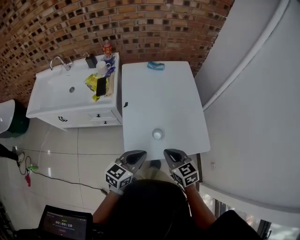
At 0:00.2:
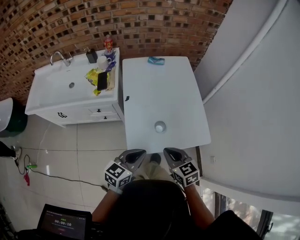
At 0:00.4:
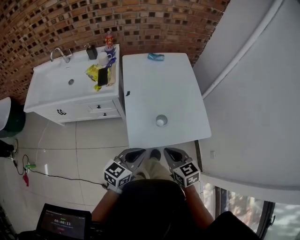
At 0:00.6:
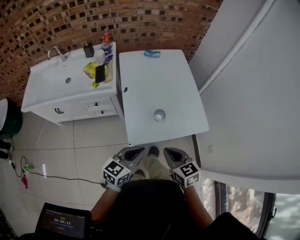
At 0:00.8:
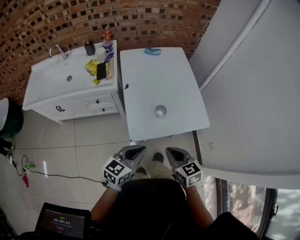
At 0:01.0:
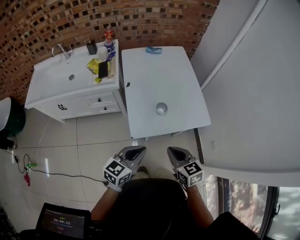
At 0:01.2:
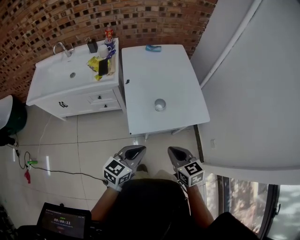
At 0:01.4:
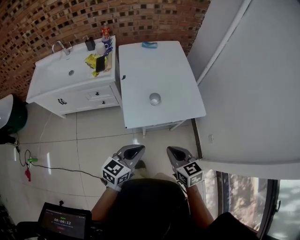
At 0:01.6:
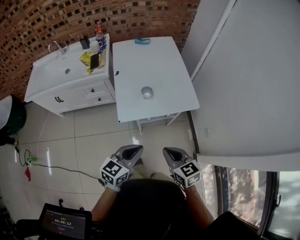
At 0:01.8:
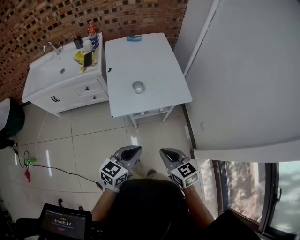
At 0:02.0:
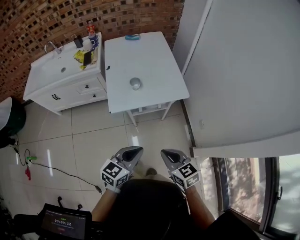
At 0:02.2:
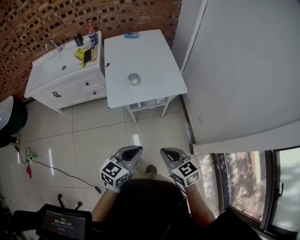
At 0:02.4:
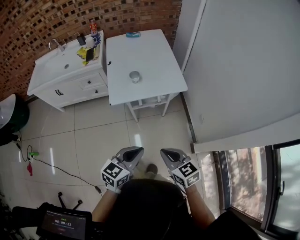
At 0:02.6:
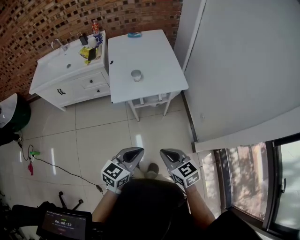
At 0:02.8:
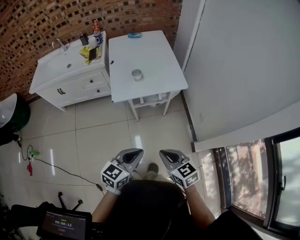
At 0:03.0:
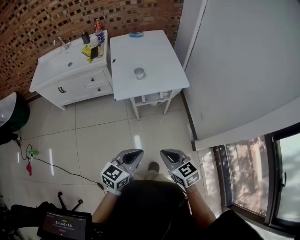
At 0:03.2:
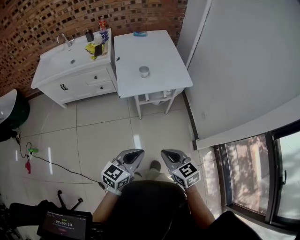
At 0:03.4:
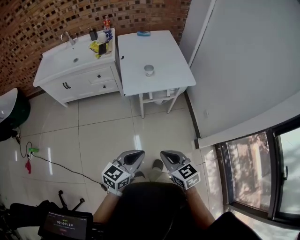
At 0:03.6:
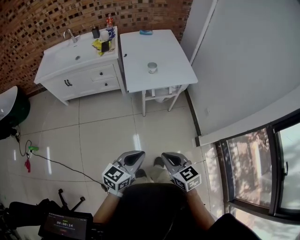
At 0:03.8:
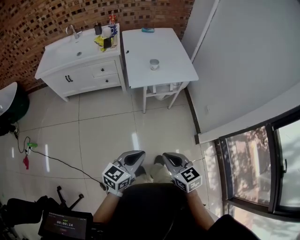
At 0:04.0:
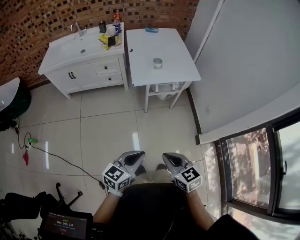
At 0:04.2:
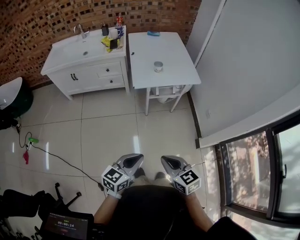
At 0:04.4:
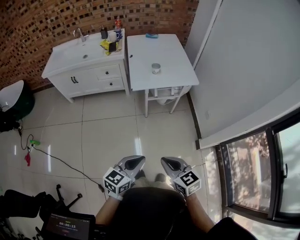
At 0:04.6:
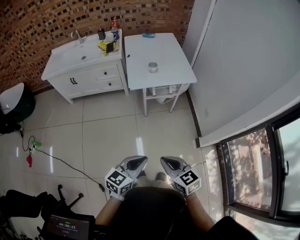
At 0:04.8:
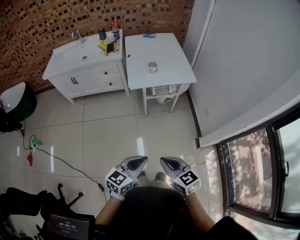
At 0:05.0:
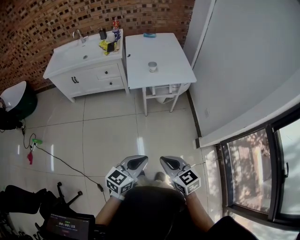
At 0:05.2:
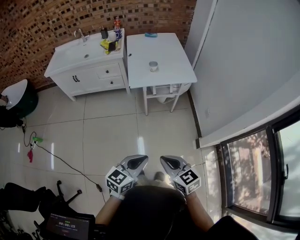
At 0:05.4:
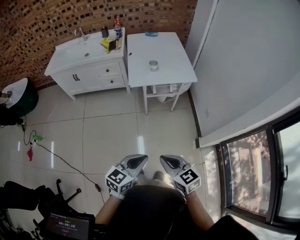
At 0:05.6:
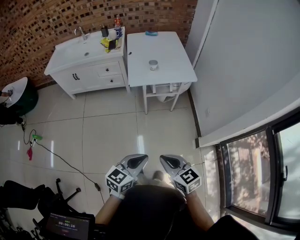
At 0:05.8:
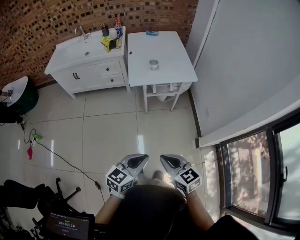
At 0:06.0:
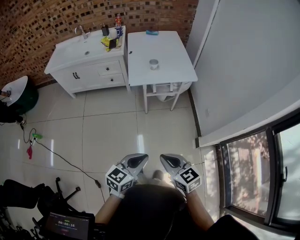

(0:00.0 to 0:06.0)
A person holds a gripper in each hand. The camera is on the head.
0:00.0 - 0:01.6: The two grippers go approximately 25 cm backward.
0:01.6 - 0:03.0: Both grippers travel together backward, about 20 cm.
0:03.0 - 0:04.4: Both grippers move backward and to the left, roughly 15 cm.
0:04.4 - 0:06.0: The left gripper is displaced to the right by approximately 5 cm.

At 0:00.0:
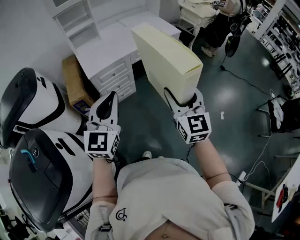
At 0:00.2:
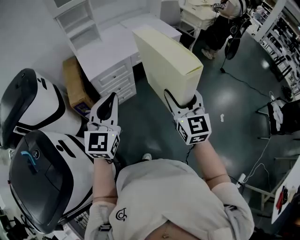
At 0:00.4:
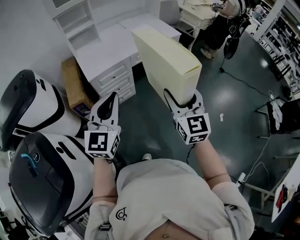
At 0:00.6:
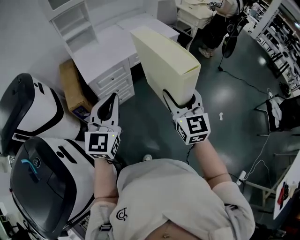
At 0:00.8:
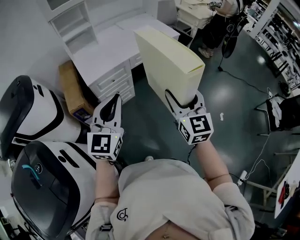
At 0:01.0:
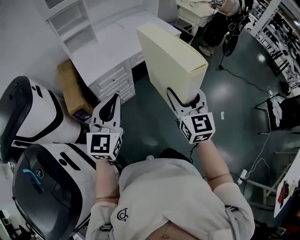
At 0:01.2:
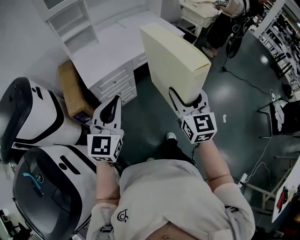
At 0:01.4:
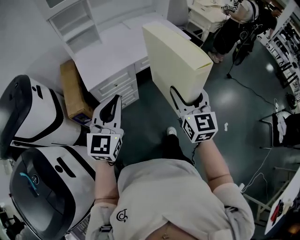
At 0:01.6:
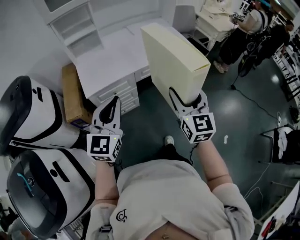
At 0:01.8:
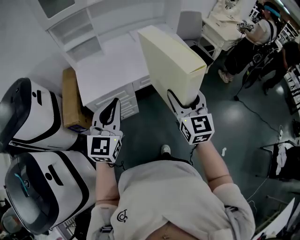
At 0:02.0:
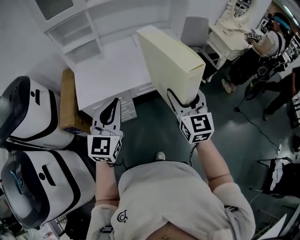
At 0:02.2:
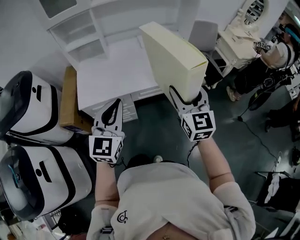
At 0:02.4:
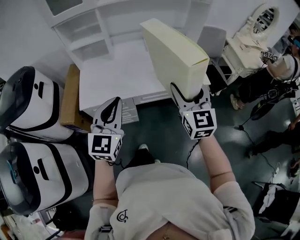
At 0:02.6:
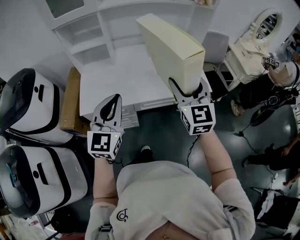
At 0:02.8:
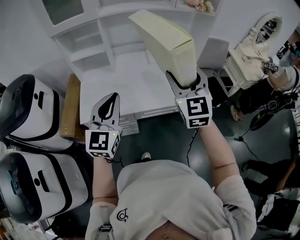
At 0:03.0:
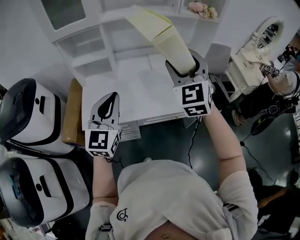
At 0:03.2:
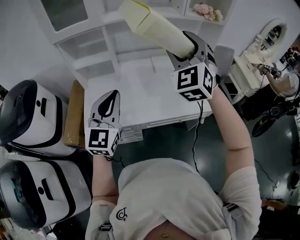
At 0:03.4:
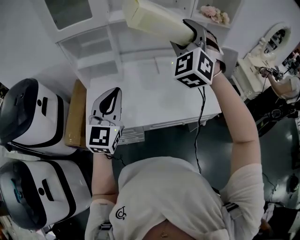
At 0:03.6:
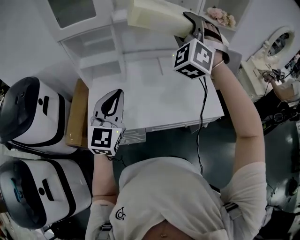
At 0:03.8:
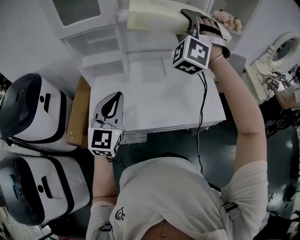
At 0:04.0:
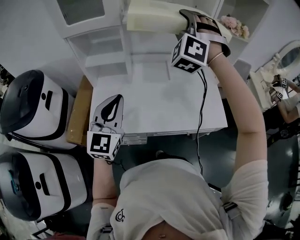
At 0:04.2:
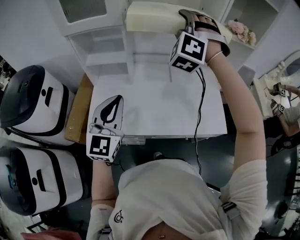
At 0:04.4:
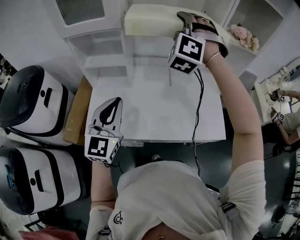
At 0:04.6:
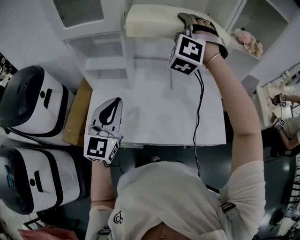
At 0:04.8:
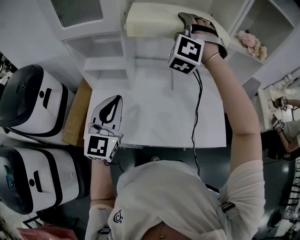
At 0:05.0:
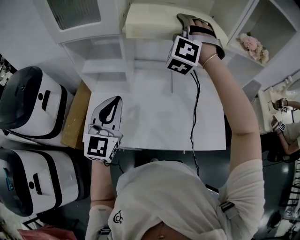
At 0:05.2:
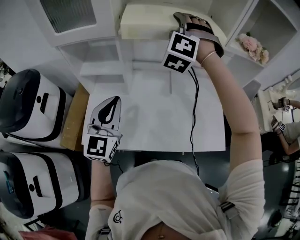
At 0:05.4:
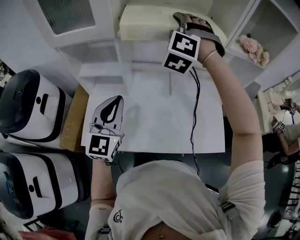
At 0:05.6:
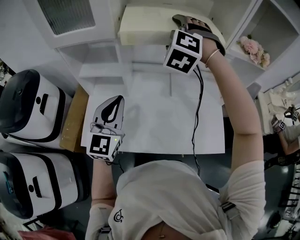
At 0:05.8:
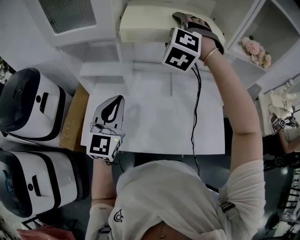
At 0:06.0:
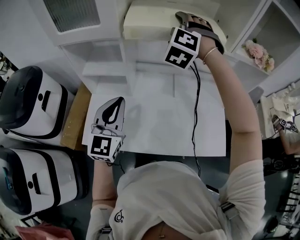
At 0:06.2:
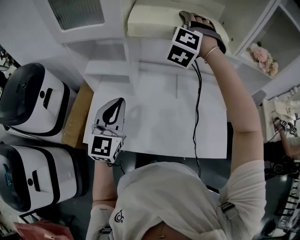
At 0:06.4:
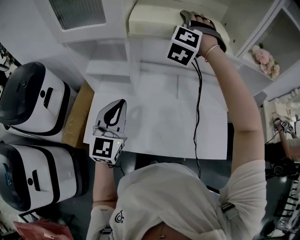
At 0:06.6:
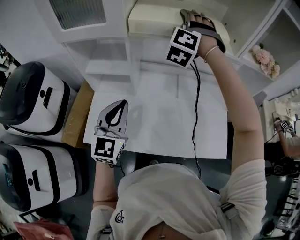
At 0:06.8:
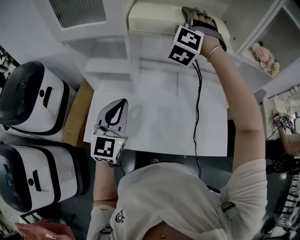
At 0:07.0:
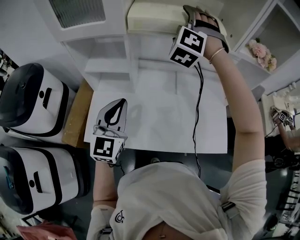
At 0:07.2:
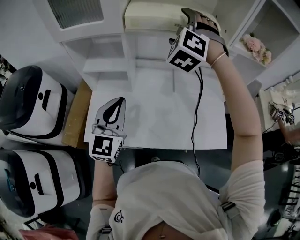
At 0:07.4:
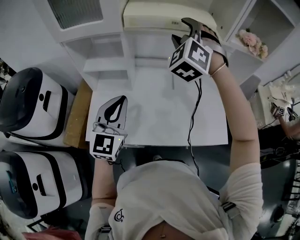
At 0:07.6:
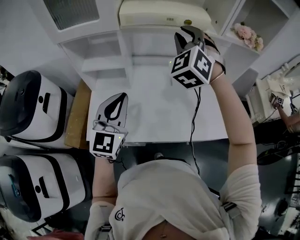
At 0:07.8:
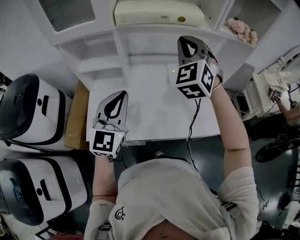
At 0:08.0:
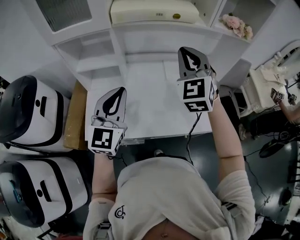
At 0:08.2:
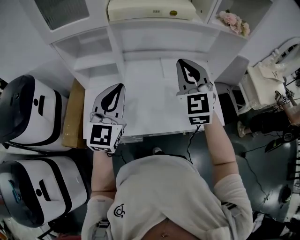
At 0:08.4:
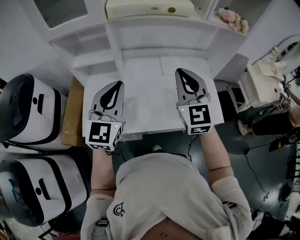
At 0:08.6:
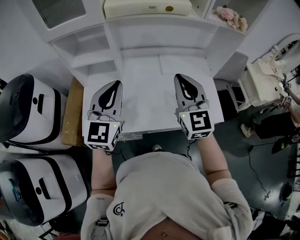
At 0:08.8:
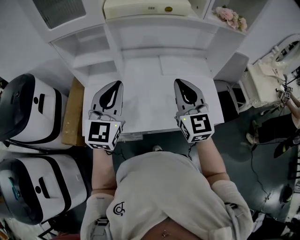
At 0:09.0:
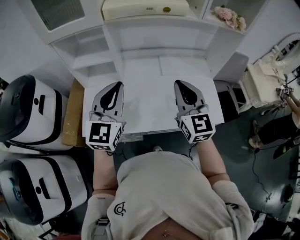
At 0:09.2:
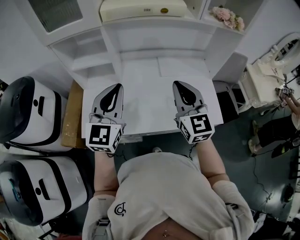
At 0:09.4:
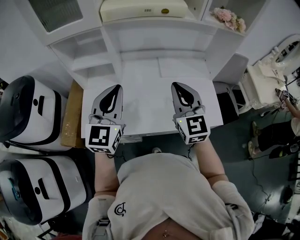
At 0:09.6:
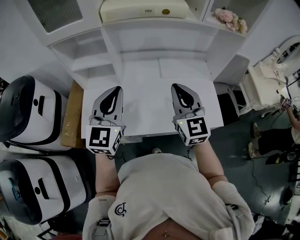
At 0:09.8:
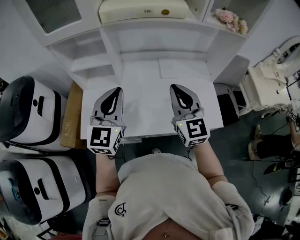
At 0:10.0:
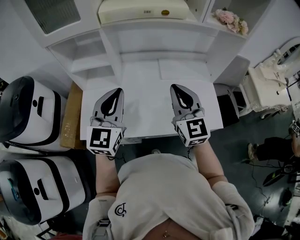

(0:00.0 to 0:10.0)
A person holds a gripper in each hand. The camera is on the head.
0:00.0 - 0:01.4: Both grippers travel together forward, roughly 15 cm.
0:01.4 - 0:02.8: The grippers both shift forward by some 35 cm. The right gripper swivels some 30 degrees, while the left gripper swivels some 20 degrees.
0:02.8 - 0:04.2: The left gripper travels forward and to the left by roughly 15 cm. Meanwhile the right gripper heads forward and to the left, covering roughly 30 cm, and rolls counterclockwise, seen from behind, by approximately 60 degrees.
0:04.2 - 0:05.8: The right gripper goes roughly 10 cm forward and downward, and turns by about 20 degrees. Meanwhile the left gripper shifts some 10 cm forward.
0:05.8 - 0:07.2: The grippers stay close to where they were, moving slightly.
0:07.2 - 0:08.6: The left gripper changes place by approximately 5 cm, while the right gripper shifts roughly 30 cm backward, to the right and downward, twists roughly 60 degrees clockwise, seen from behind, and closes.
0:08.6 - 0:10.0: There are only small adjustments of the grippers.

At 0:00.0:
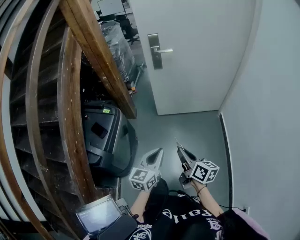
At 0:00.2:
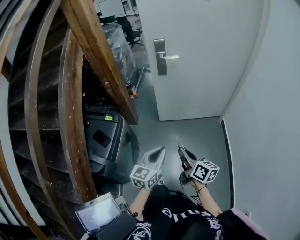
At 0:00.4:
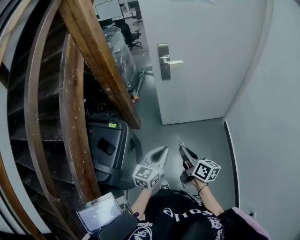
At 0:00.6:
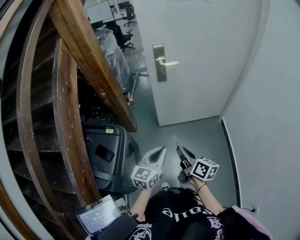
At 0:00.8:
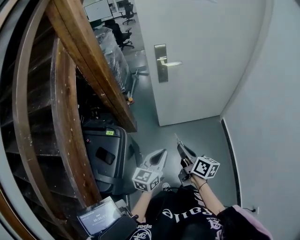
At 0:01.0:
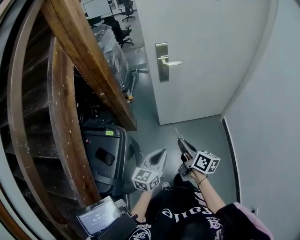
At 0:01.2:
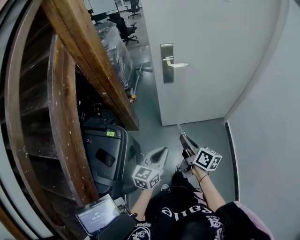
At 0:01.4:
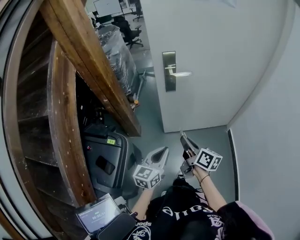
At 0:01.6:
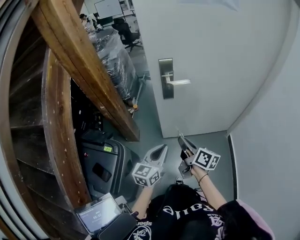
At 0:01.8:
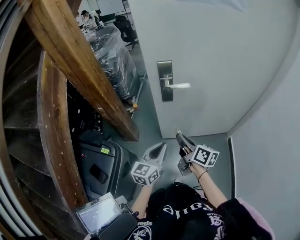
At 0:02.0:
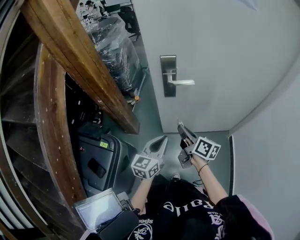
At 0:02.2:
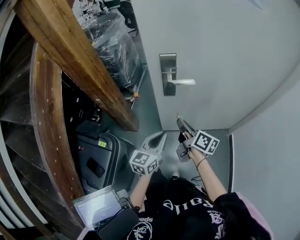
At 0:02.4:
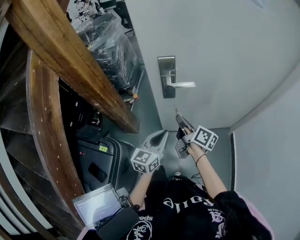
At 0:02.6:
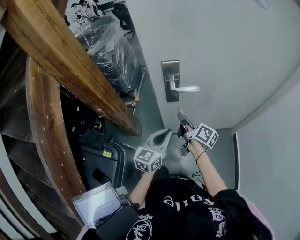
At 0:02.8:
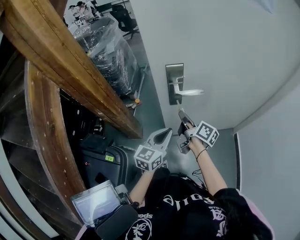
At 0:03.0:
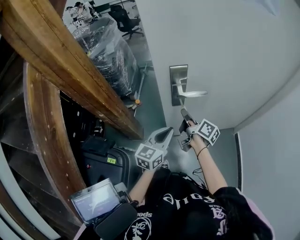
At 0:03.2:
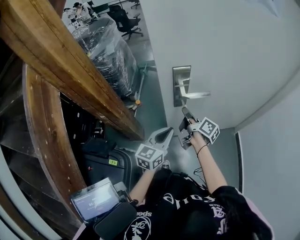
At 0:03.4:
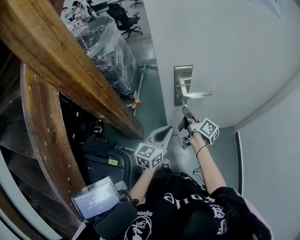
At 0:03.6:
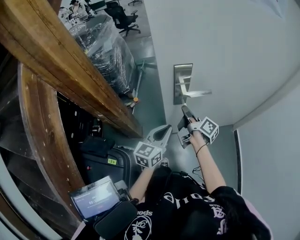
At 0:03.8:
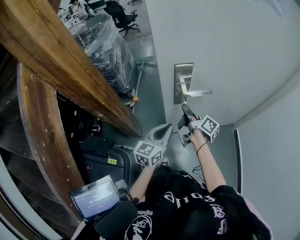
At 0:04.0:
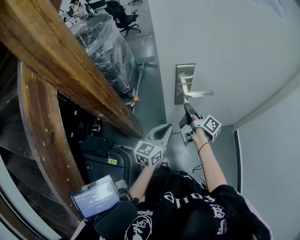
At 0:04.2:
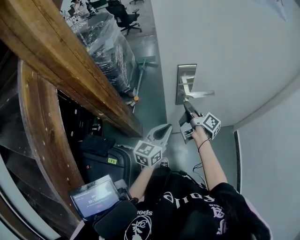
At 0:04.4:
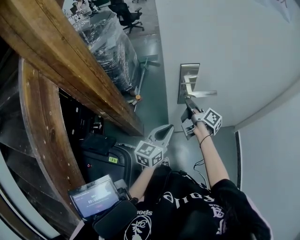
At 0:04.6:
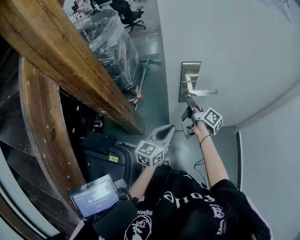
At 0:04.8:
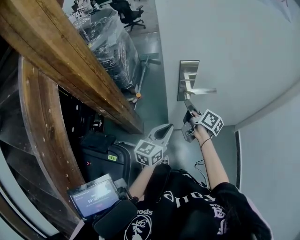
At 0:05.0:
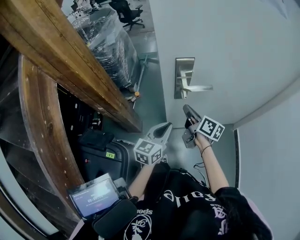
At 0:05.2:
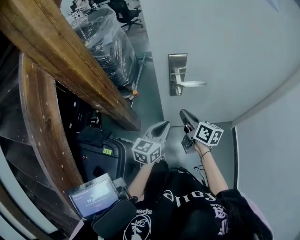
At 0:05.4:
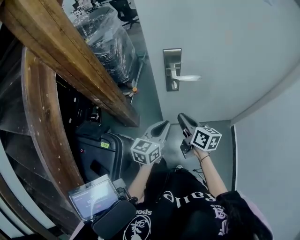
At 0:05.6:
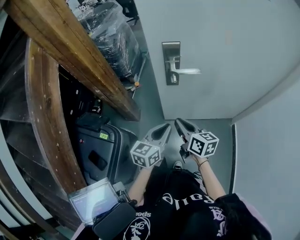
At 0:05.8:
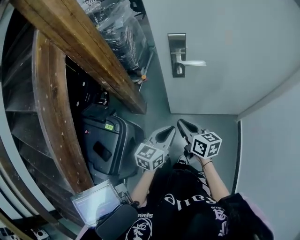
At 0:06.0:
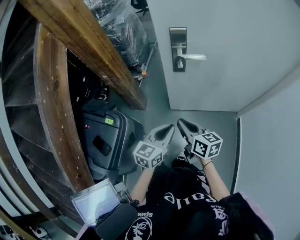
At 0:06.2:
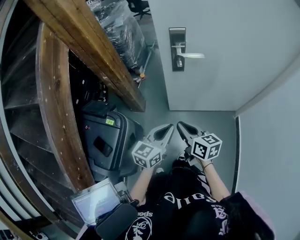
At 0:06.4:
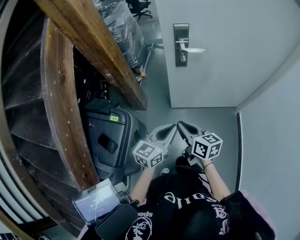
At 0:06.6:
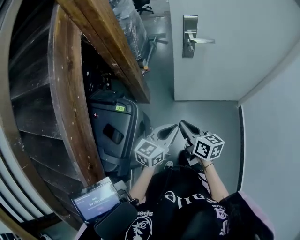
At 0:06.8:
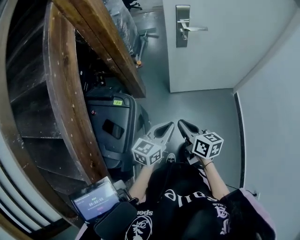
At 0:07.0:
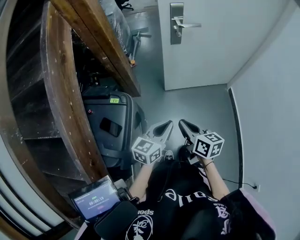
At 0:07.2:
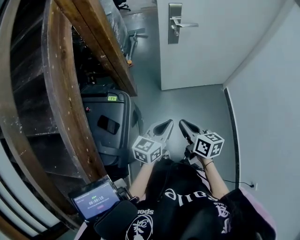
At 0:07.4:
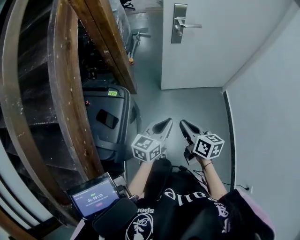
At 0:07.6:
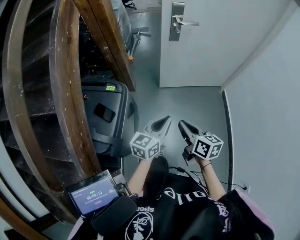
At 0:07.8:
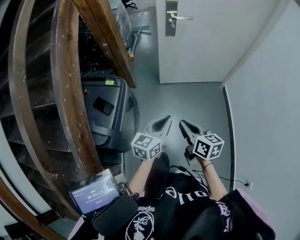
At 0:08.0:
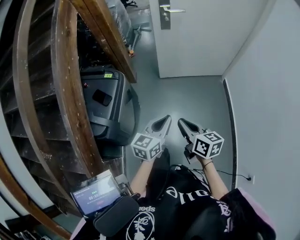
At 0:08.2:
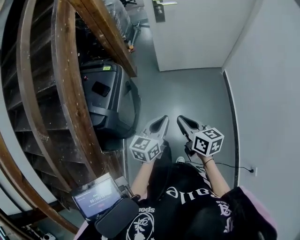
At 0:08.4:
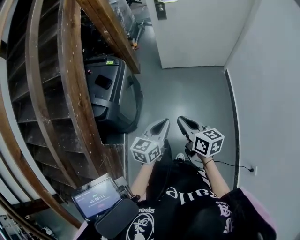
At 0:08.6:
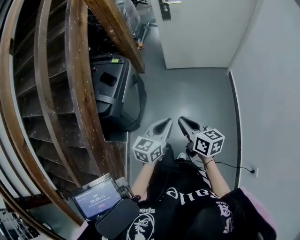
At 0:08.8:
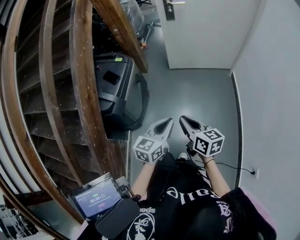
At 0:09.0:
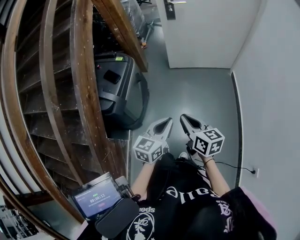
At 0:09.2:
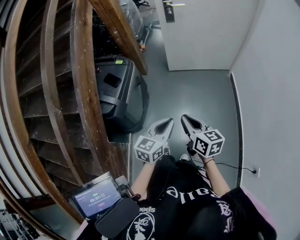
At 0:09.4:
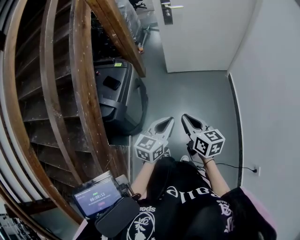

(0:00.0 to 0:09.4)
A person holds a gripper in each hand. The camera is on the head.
0:00.0 - 0:01.6: The grippers both shift forward by approximately 35 cm.
0:01.6 - 0:03.2: Both grippers travel together forward, about 25 cm. The right gripper rotates some 20 degrees.
0:03.2 - 0:04.8: The grippers make only small movements.
0:04.8 - 0:06.2: The right gripper heads backward, covering approximately 30 cm, and turns by some 40 degrees. Meanwhile the left gripper travels backward by roughly 20 cm.
0:06.2 - 0:07.8: Both grippers move backward, about 30 cm.
0:07.8 - 0:09.4: Both grippers move backward, some 20 cm.
